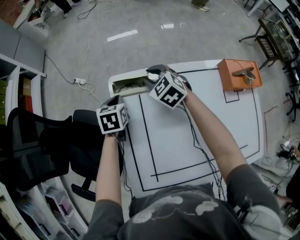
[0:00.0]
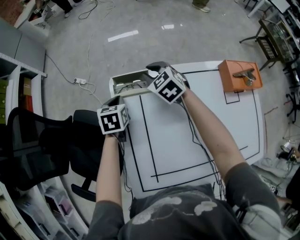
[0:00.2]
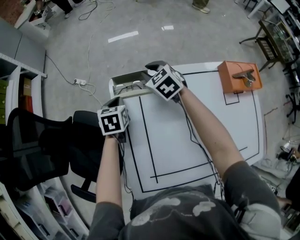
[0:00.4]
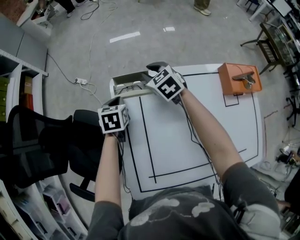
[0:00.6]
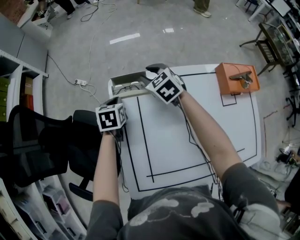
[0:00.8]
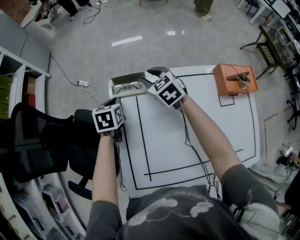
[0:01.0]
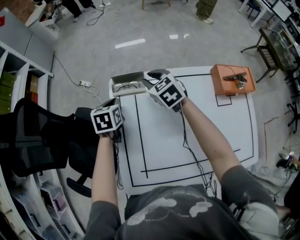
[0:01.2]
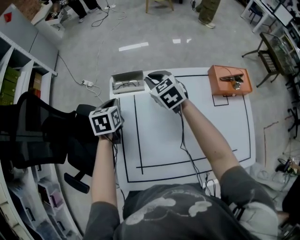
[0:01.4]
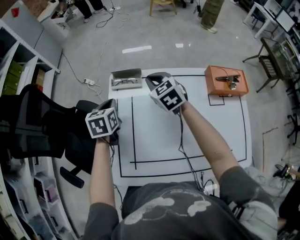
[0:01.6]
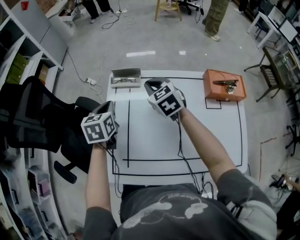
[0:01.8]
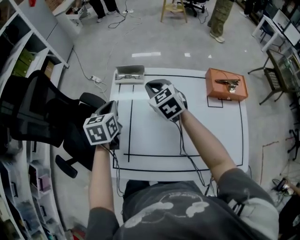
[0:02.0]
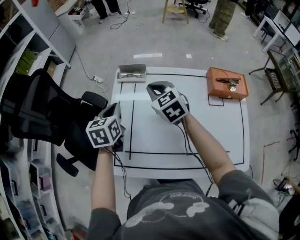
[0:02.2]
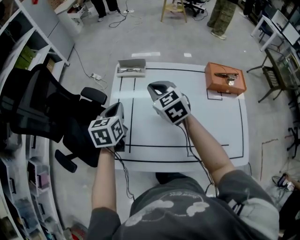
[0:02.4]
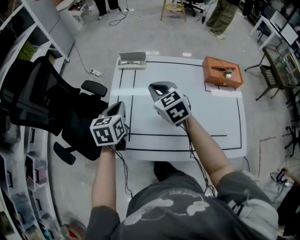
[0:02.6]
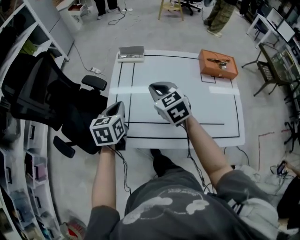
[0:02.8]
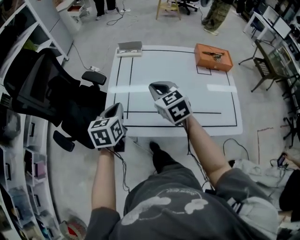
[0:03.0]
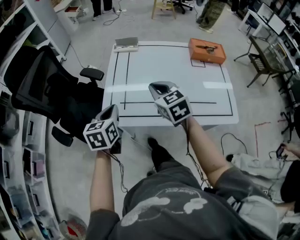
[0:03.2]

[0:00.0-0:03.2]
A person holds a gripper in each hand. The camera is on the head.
0:00.0 to 0:01.6: The right gripper travels backward and upward by roughly 10 cm. Meanwhile the left gripper heads upward and backward, covering some 15 cm.
0:01.6 to 0:03.2: The two grippers go some 35 cm backward.

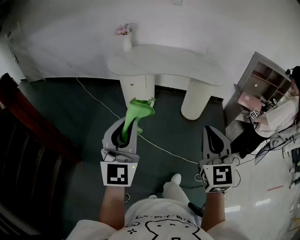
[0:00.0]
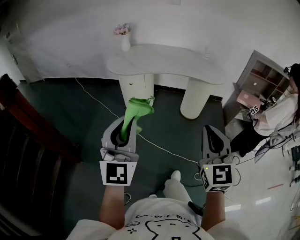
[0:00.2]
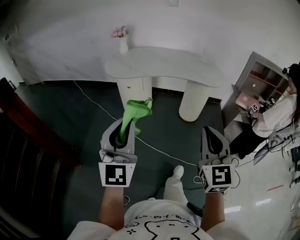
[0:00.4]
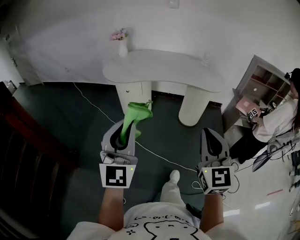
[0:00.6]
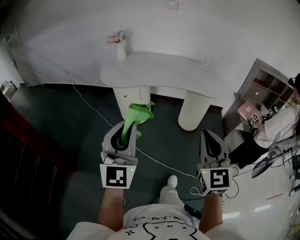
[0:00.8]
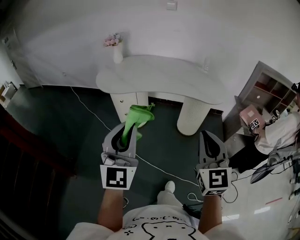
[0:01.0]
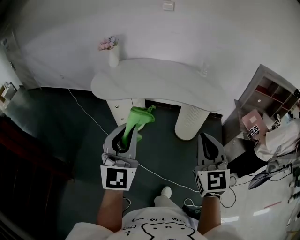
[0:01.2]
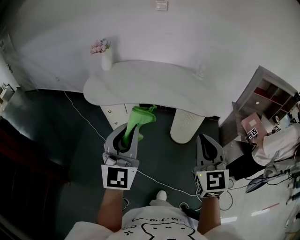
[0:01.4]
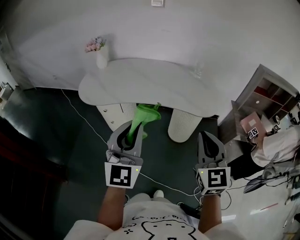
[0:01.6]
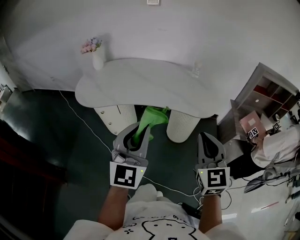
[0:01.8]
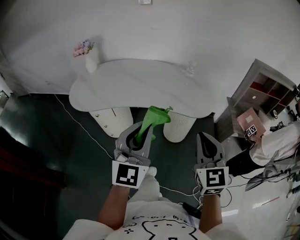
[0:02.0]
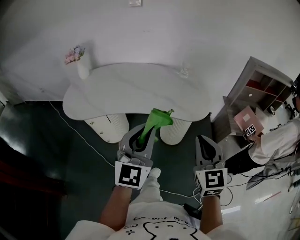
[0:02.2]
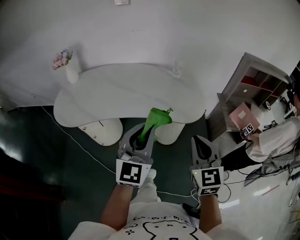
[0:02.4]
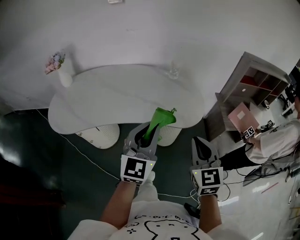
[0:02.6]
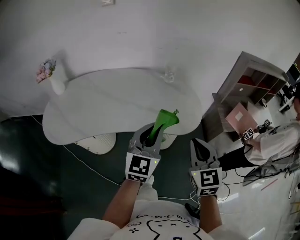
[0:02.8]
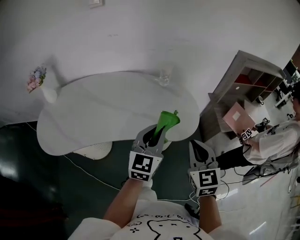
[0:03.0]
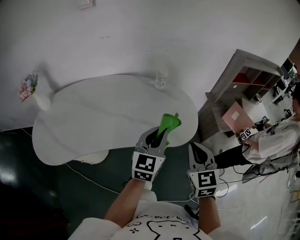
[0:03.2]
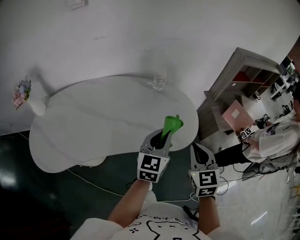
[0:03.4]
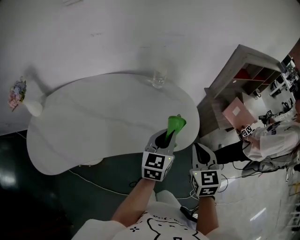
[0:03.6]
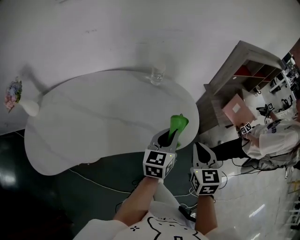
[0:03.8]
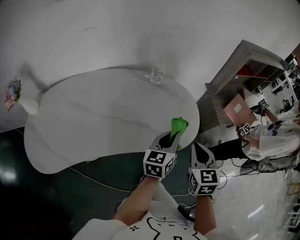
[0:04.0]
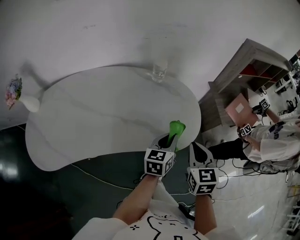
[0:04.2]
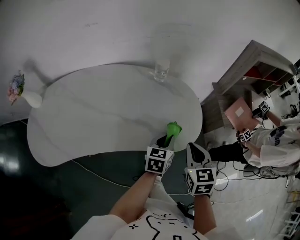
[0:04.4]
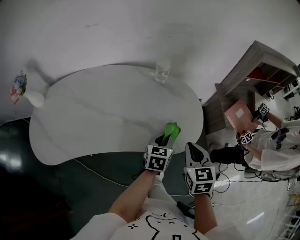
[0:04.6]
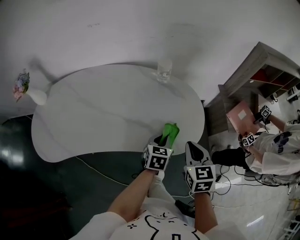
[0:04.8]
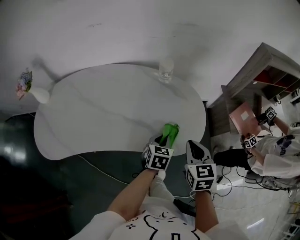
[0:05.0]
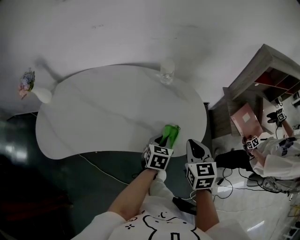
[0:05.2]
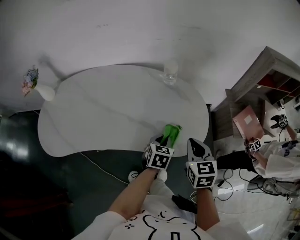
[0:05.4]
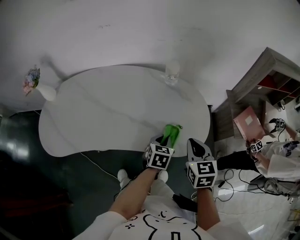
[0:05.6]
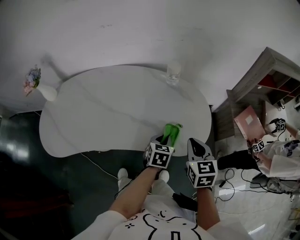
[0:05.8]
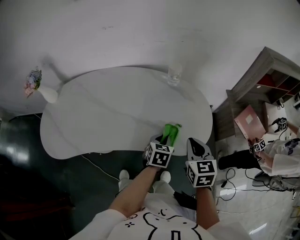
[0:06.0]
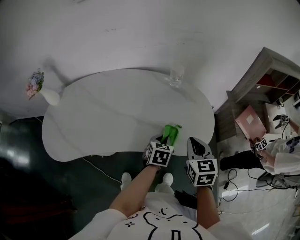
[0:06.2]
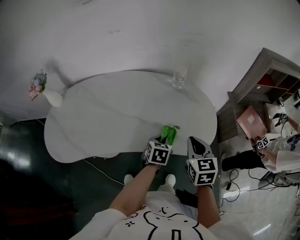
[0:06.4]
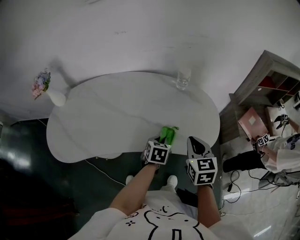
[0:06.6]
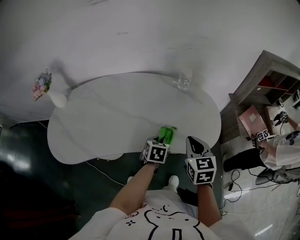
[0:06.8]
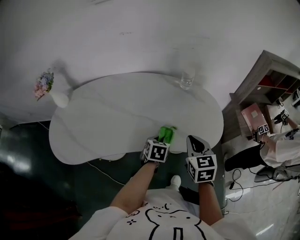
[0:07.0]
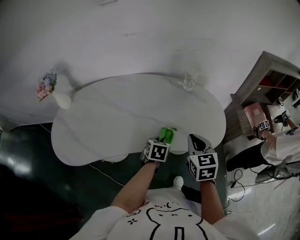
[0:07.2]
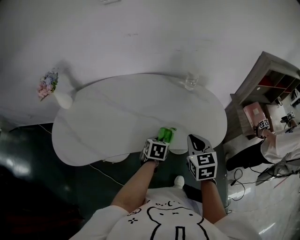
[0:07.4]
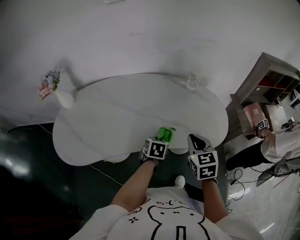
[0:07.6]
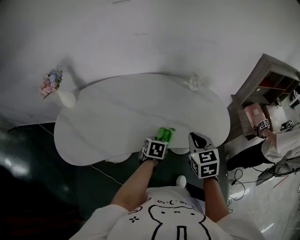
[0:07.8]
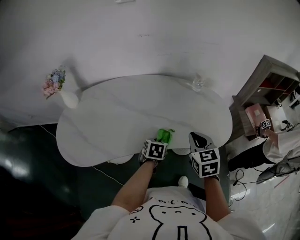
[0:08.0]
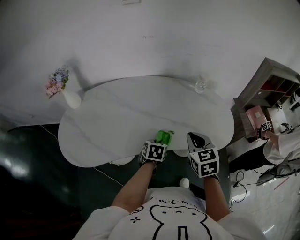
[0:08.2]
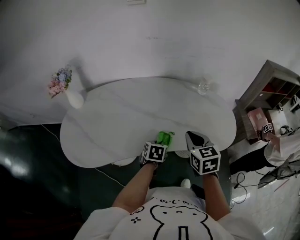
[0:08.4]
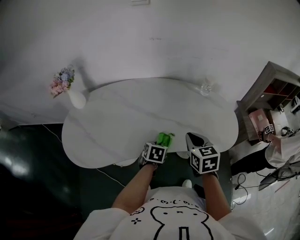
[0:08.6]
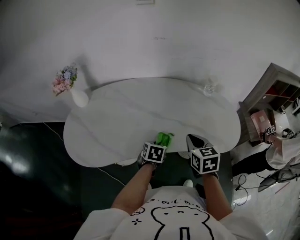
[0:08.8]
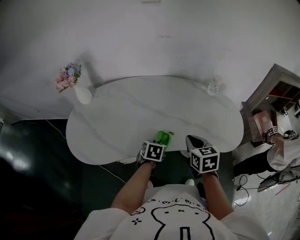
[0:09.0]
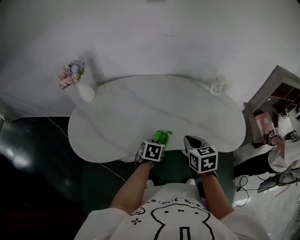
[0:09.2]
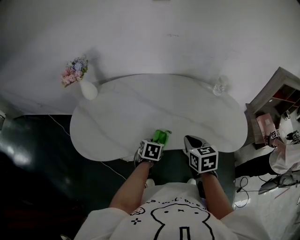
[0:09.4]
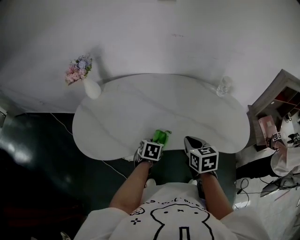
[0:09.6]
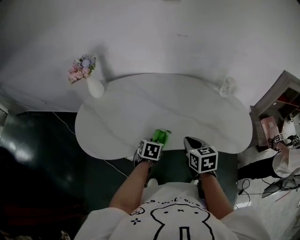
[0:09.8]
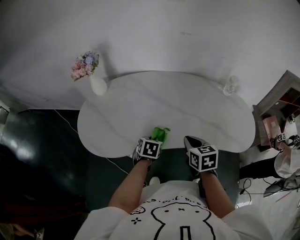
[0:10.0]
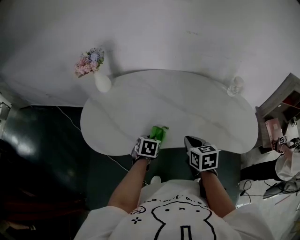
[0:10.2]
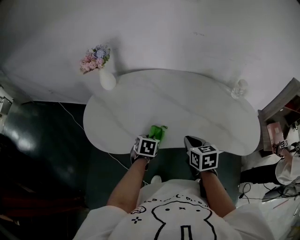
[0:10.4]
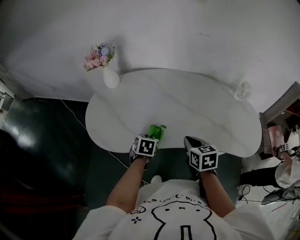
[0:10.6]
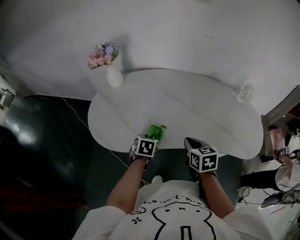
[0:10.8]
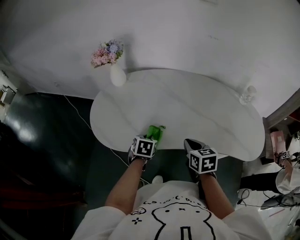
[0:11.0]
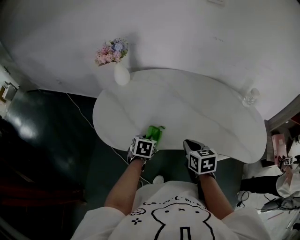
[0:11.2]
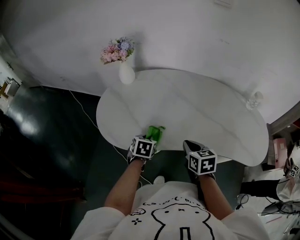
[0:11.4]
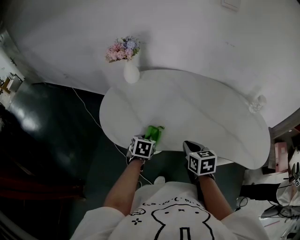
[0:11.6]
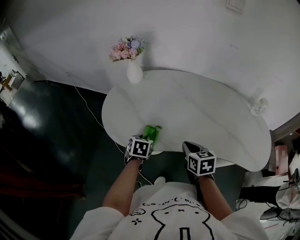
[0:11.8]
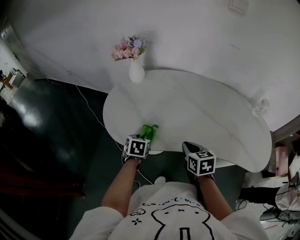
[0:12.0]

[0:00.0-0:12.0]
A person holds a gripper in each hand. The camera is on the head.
0:00.0 to 0:01.6: The grippers both shift forward and to the right by roughly 40 cm.
0:01.6 to 0:03.0: The left gripper moves forward and to the right, about 35 cm, and rotates some 30 degrees. The right gripper travels forward by some 25 cm, and swivels some 20 degrees.
0:03.0 to 0:04.4: The left gripper heads downward and forward, covering about 25 cm, and swivels about 30 degrees, while the right gripper shifts some 15 cm forward and downward.
0:04.4 to 0:06.0: The left gripper shifts about 5 cm to the left, and rotates roughly 20 degrees.
0:06.0 to 0:07.6: The grippers both shift to the left by some 15 cm.
0:07.6 to 0:09.0: Both grippers move to the left, roughly 15 cm.
0:09.0 to 0:10.4: Both grippers move to the left, about 15 cm.
0:10.4 to 0:12.0: The two grippers go some 15 cm to the left.

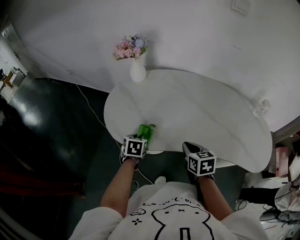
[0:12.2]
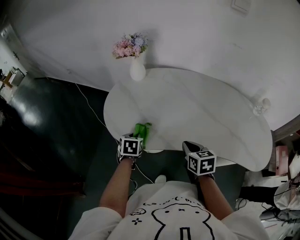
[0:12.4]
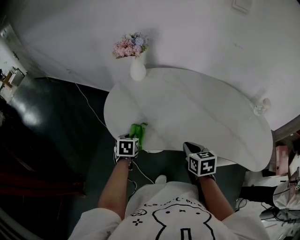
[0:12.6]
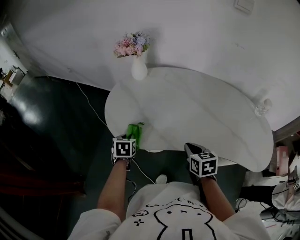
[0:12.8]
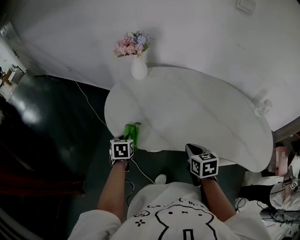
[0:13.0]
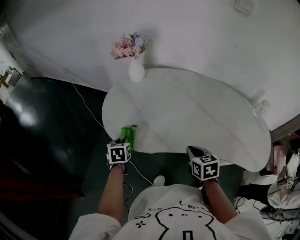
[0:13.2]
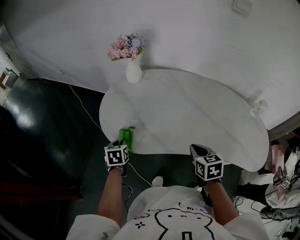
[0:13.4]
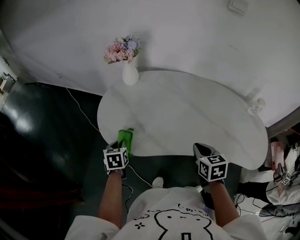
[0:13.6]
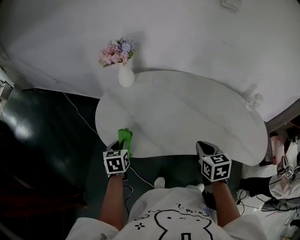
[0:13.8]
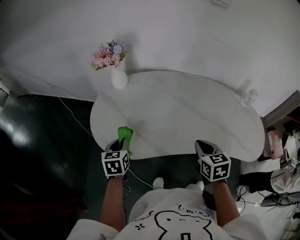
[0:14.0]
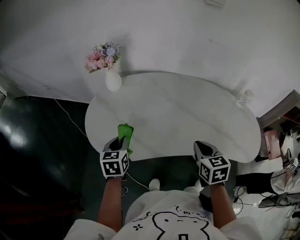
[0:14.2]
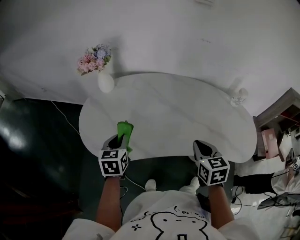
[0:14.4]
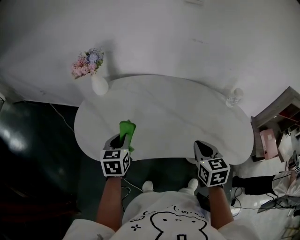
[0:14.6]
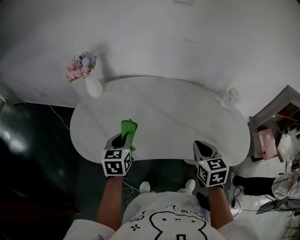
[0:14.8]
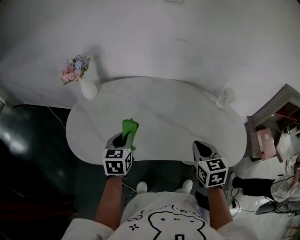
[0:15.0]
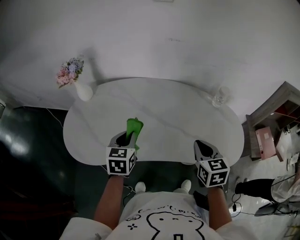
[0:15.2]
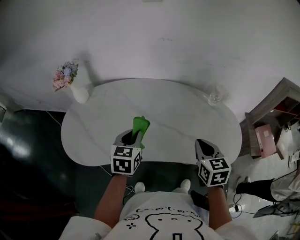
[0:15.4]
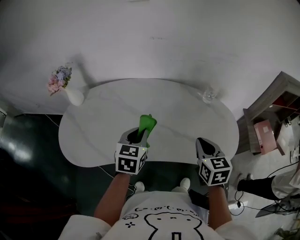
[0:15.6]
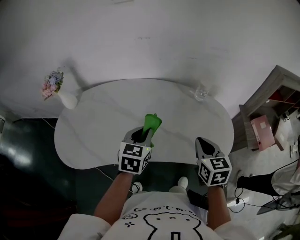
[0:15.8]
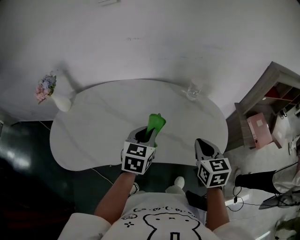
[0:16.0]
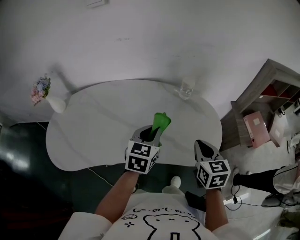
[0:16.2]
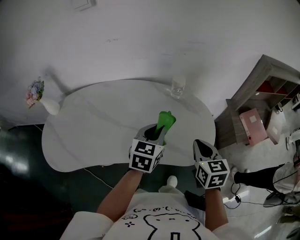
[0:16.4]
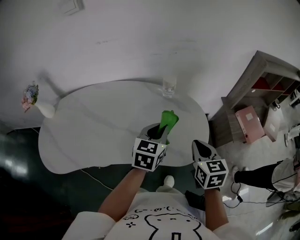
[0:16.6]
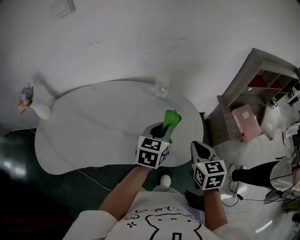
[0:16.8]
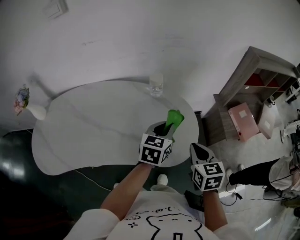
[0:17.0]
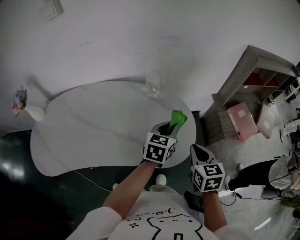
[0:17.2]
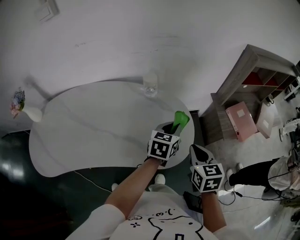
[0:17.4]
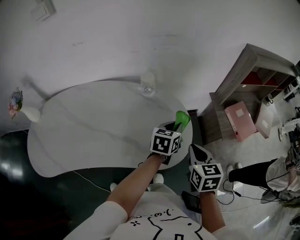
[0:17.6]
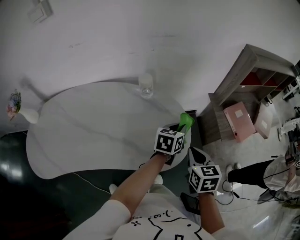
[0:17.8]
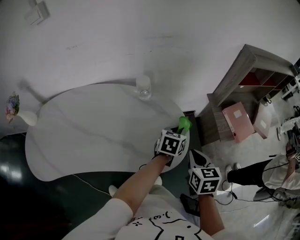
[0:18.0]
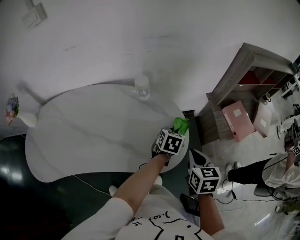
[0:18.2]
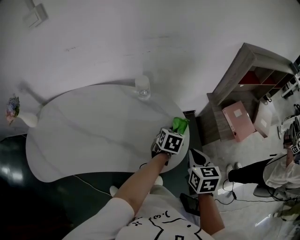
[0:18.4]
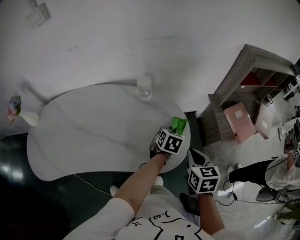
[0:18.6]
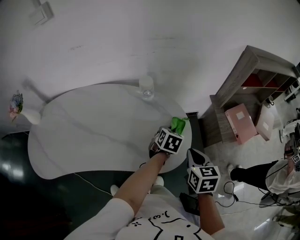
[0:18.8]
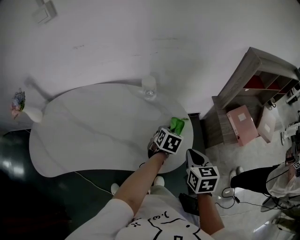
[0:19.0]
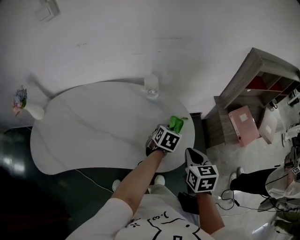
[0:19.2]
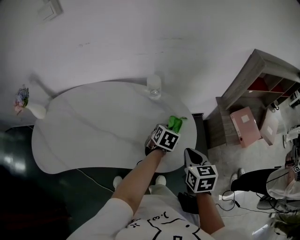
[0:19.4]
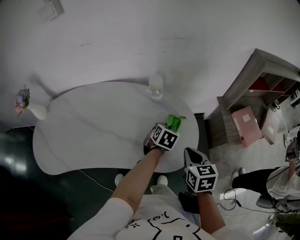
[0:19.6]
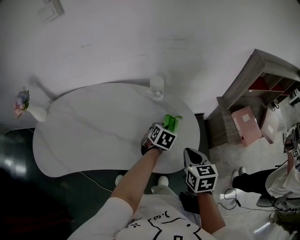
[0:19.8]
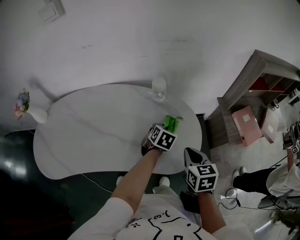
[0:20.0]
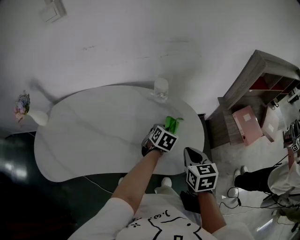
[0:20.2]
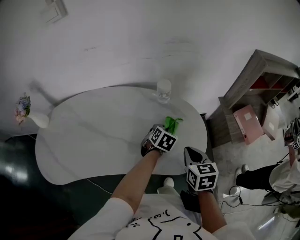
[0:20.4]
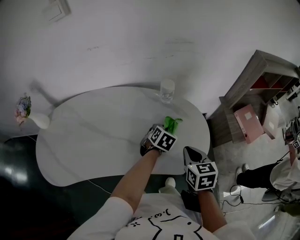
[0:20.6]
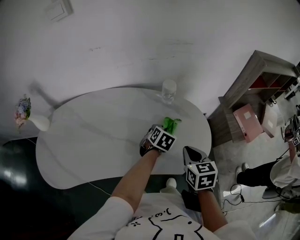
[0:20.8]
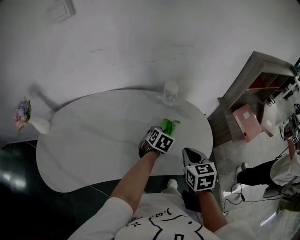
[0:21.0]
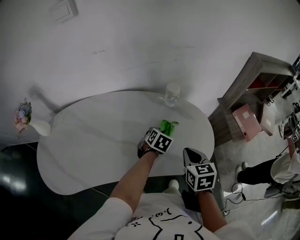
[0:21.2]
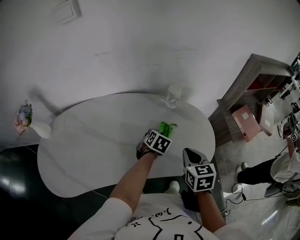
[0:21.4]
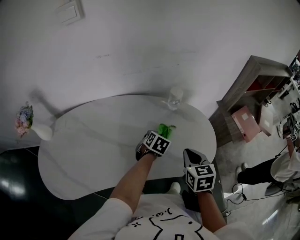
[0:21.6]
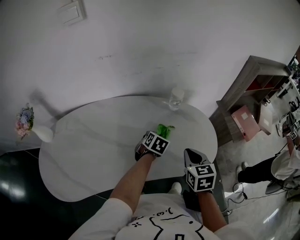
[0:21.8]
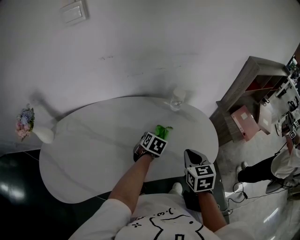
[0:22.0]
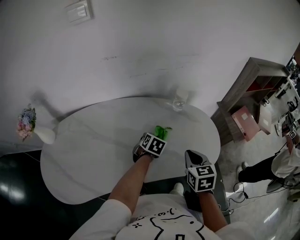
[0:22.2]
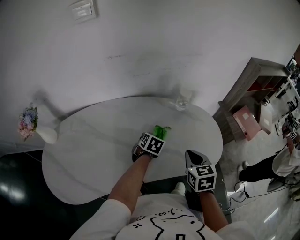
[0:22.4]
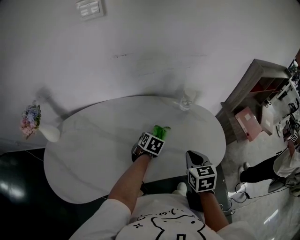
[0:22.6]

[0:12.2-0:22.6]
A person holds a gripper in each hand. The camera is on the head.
0:12.2 to 0:13.6: The left gripper goes approximately 10 cm to the left. Meanwhile the right gripper ends up about 5 cm from where it was.
0:13.6 to 0:15.2: Both grippers move to the right, some 30 cm. The left gripper turns by some 30 degrees.
0:15.2 to 0:16.6: The left gripper is displaced to the right by approximately 40 cm, and rotates about 30 degrees. Meanwhile the right gripper travels to the right by roughly 25 cm.
0:16.6 to 0:18.2: The right gripper goes approximately 10 cm to the right and downward. Meanwhile the left gripper goes some 25 cm to the right, downward and forward, and turns by roughly 20 degrees.
0:18.2 to 0:19.6: The two grippers go about 5 cm to the left.
0:19.6 to 0:21.2: The grippers both shift to the left by about 15 cm.
0:21.2 to 0:22.6: The right gripper heads to the left, covering some 10 cm. The left gripper travels to the left by approximately 15 cm.
